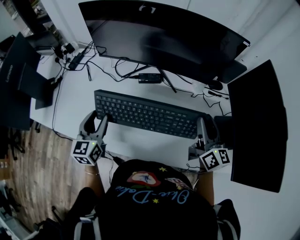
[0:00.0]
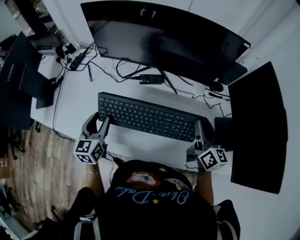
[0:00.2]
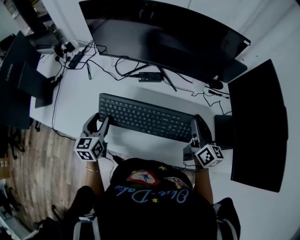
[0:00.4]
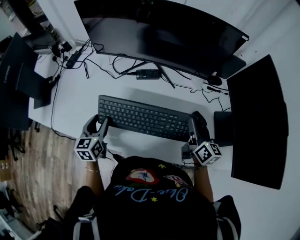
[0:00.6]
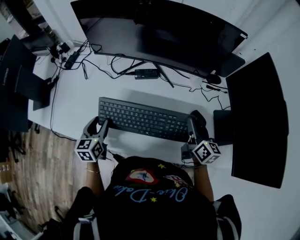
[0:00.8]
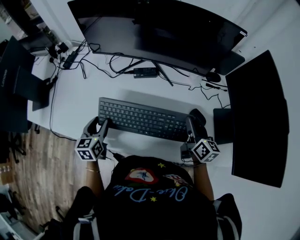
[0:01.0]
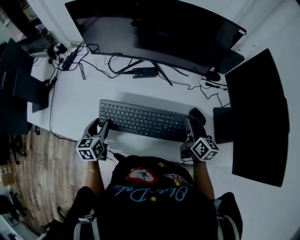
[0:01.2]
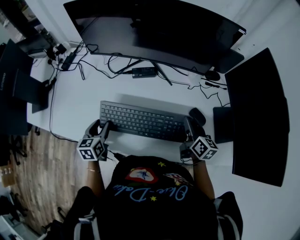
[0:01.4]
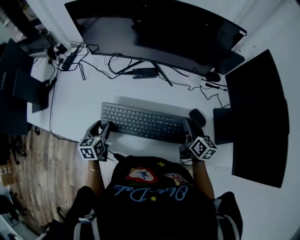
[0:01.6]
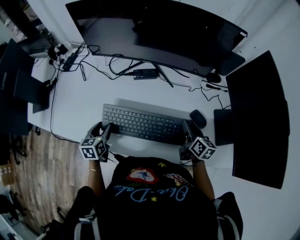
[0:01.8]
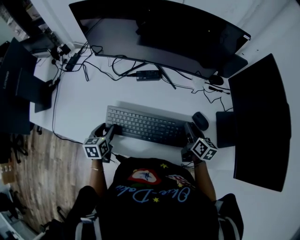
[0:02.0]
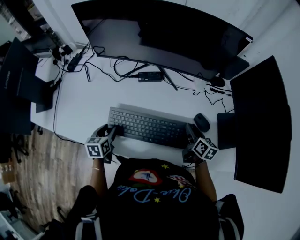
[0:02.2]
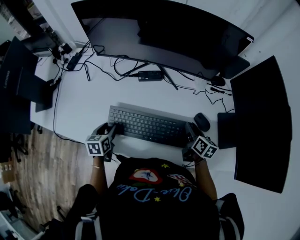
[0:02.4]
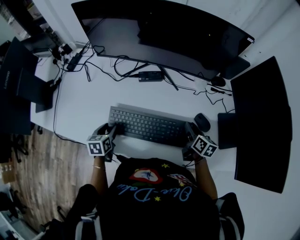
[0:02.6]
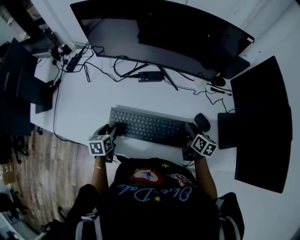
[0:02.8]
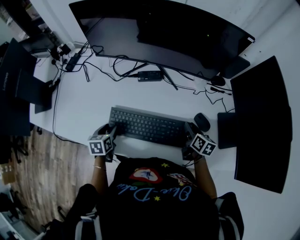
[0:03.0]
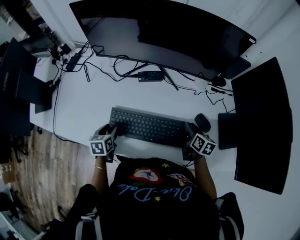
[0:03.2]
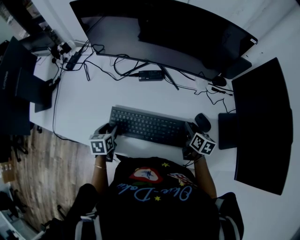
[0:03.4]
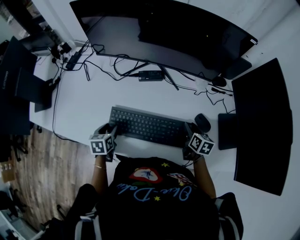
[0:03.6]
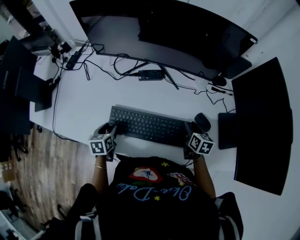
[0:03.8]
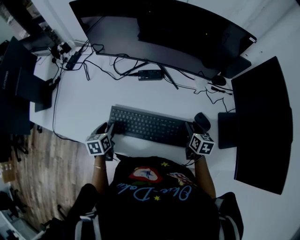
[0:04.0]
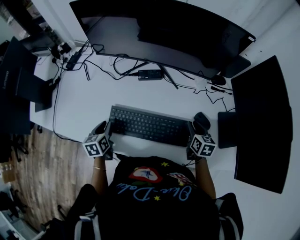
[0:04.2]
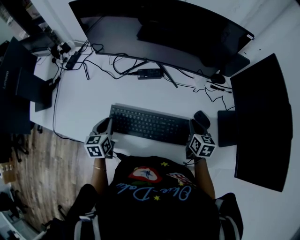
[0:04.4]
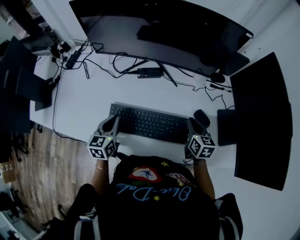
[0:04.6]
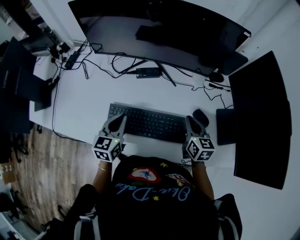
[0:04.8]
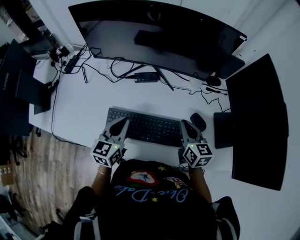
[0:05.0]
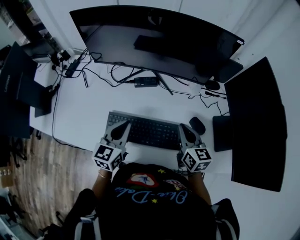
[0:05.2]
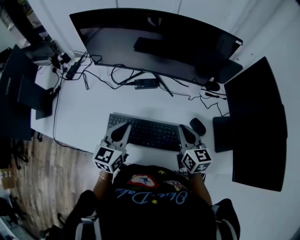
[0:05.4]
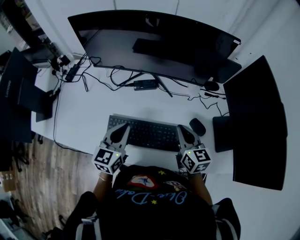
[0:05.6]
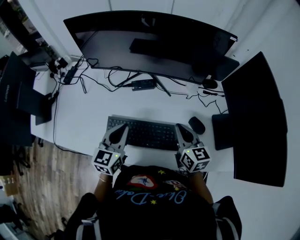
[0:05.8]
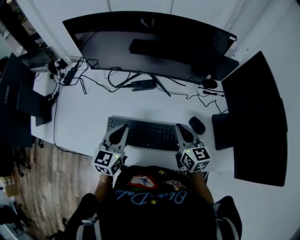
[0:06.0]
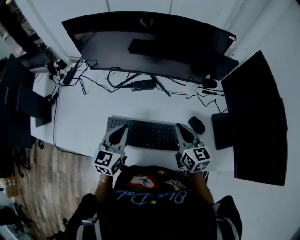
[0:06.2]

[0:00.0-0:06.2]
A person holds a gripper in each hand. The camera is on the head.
0:00.0 to 0:01.6: The two grippers go some 15 cm downward. The right gripper turns by about 20 degrees; the left gripper turns by about 20 degrees.
0:01.6 to 0:03.2: The right gripper moves downward, some 5 cm.
0:03.2 to 0:04.6: Both grippers move upward, roughly 5 cm. The left gripper turns by some 20 degrees, and closes up. The right gripper closes.
0:04.6 to 0:06.2: The left gripper is displaced upward and to the right by approximately 10 cm, while the right gripper goes approximately 10 cm upward and to the left.

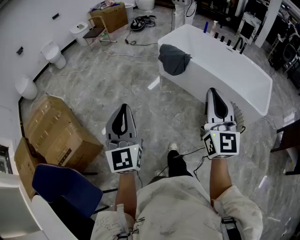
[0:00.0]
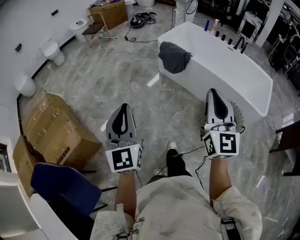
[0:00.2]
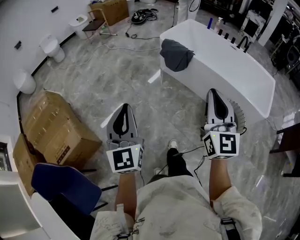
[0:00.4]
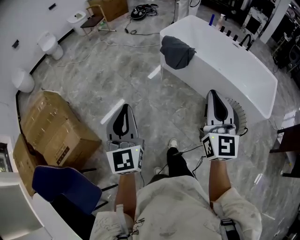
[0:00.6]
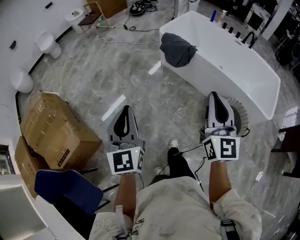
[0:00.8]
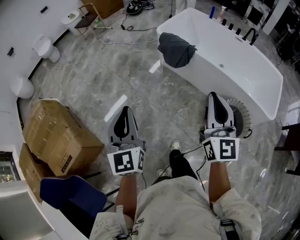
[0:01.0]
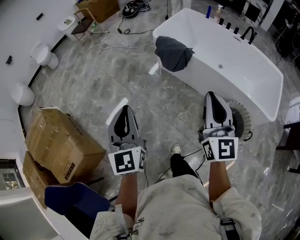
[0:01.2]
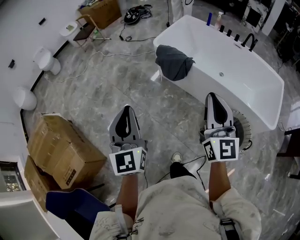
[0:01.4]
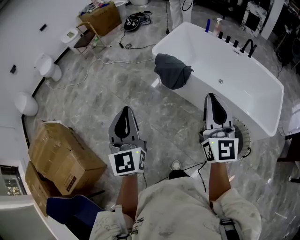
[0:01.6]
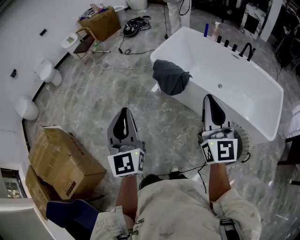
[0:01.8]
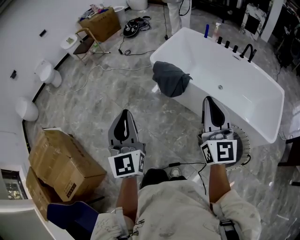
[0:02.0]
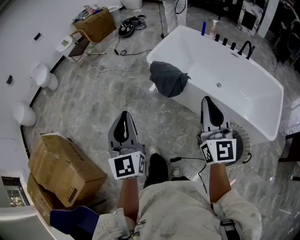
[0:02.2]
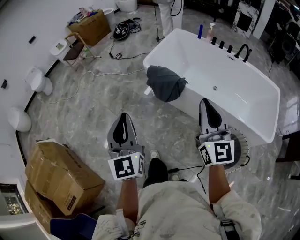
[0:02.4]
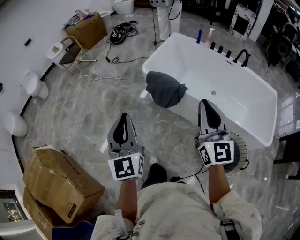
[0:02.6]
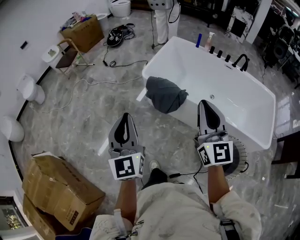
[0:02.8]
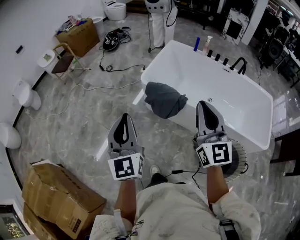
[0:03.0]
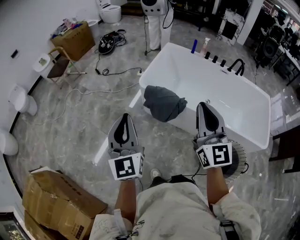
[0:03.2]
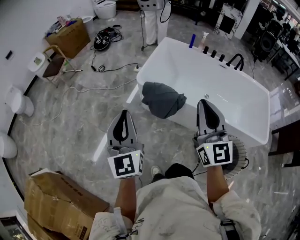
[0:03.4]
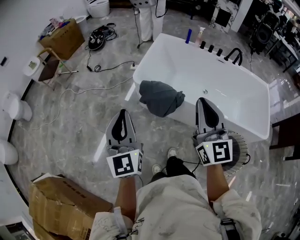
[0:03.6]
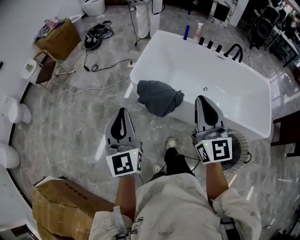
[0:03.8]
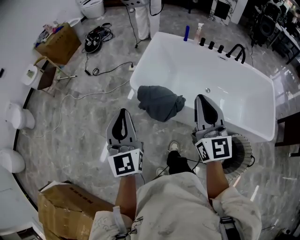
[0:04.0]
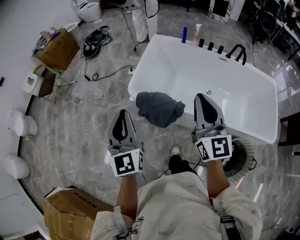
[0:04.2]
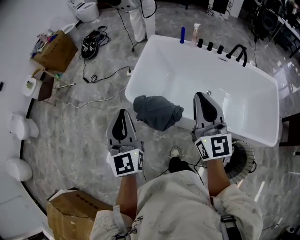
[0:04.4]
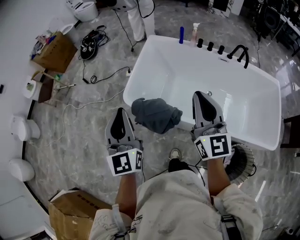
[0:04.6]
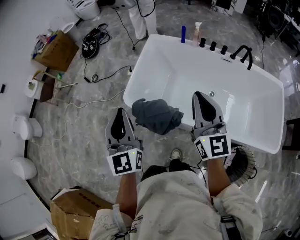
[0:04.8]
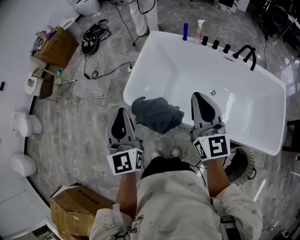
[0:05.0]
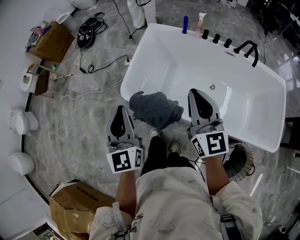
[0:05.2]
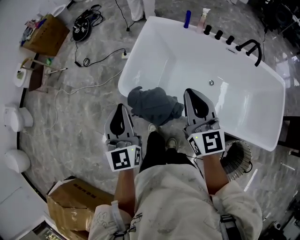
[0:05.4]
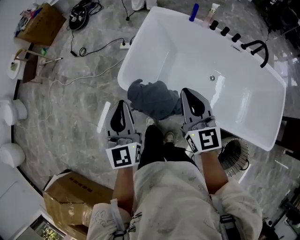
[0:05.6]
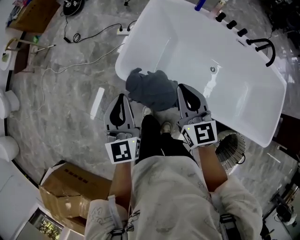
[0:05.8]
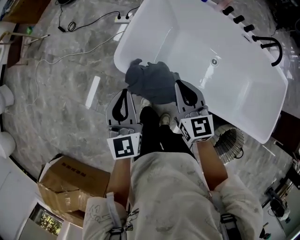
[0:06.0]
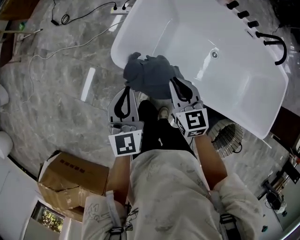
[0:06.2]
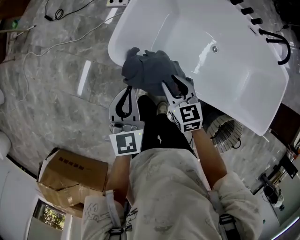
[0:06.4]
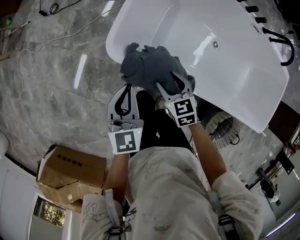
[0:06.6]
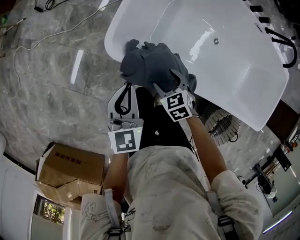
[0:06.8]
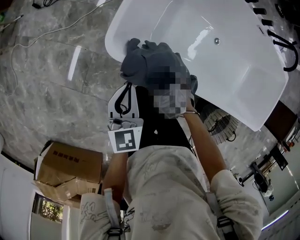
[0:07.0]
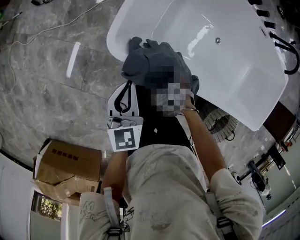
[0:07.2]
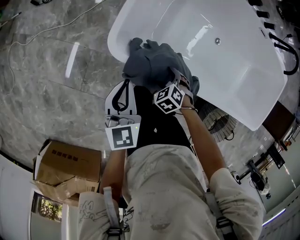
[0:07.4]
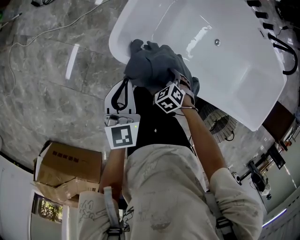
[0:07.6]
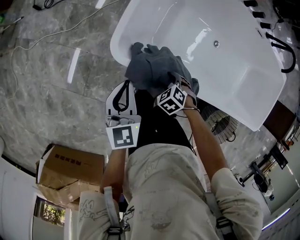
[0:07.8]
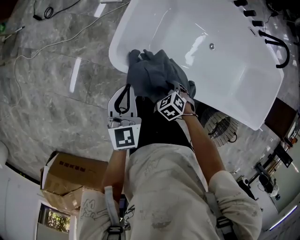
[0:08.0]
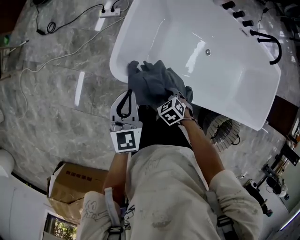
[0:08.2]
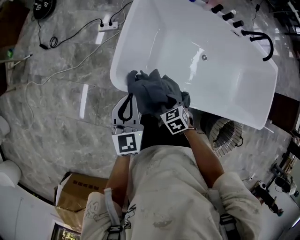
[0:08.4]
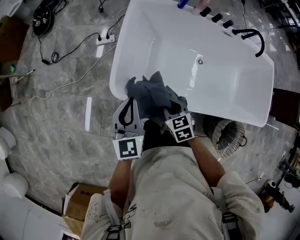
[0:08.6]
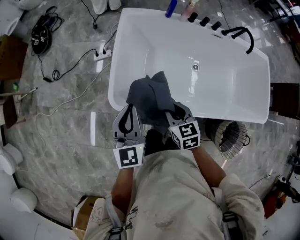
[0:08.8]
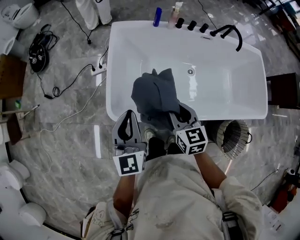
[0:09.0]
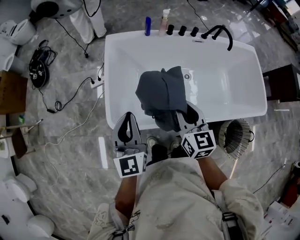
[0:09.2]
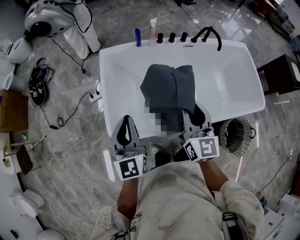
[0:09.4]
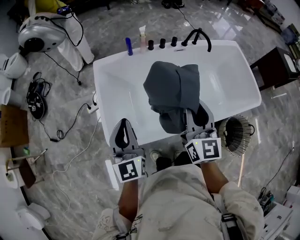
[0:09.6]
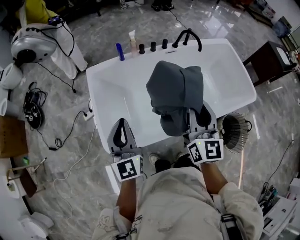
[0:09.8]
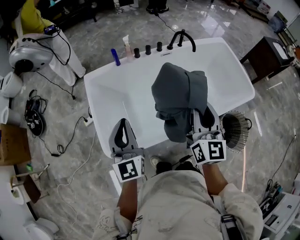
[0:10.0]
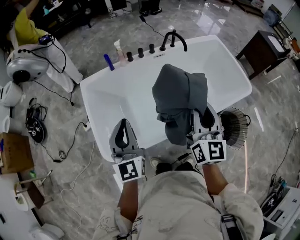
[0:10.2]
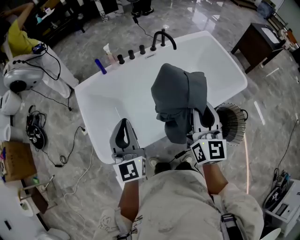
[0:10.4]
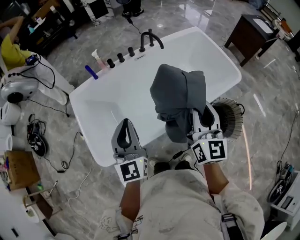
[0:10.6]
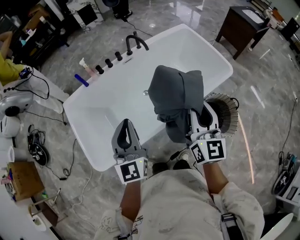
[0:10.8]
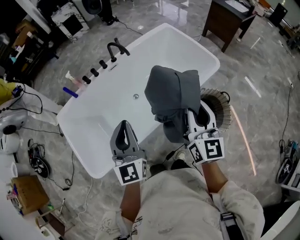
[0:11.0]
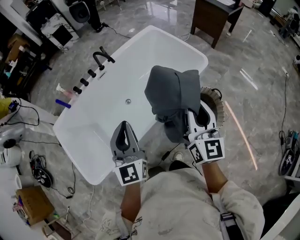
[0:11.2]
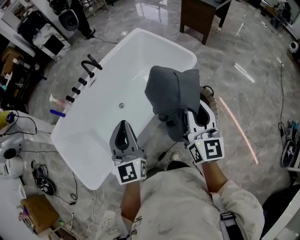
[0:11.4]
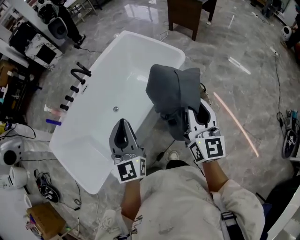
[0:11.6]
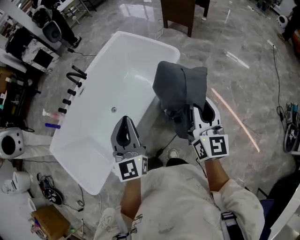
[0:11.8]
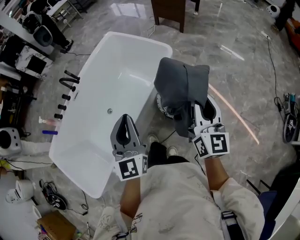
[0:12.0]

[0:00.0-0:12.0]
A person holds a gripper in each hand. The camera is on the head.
0:00.0 to 0:01.6: The grippers both shift forward by about 30 cm.
0:01.6 to 0:03.0: Both grippers travel together forward, approximately 25 cm.
0:03.0 to 0:04.4: The right gripper shifts about 30 cm forward and to the right. The left gripper goes approximately 30 cm forward.
0:04.4 to 0:06.0: The left gripper moves downward and forward, some 30 cm. The right gripper is displaced downward, forward and to the left by roughly 35 cm, and changes its angle by some 30 degrees.
0:06.0 to 0:07.6: The right gripper moves downward, some 35 cm, tips its fingers downward by some 60 degrees, and opens. The left gripper heads downward, covering roughly 15 cm.
0:07.6 to 0:09.0: The two grippers go roughly 30 cm upward. The left gripper swivels some 30 degrees; the right gripper tilts its fingers some 50 degrees upward, and closes up.
0:09.0 to 0:10.4: The left gripper moves some 25 cm, and rotates some 20 degrees, while the right gripper moves some 35 cm, and tilts its fingers roughly 30 degrees upward.
0:10.4 to 0:12.0: Both grippers are carried about 50 cm. The left gripper swivels roughly 30 degrees. Meanwhile the right gripper rotates approximately 30 degrees.

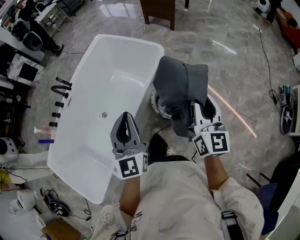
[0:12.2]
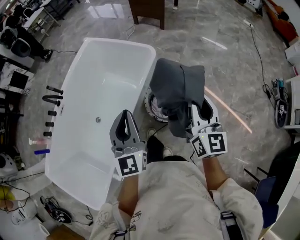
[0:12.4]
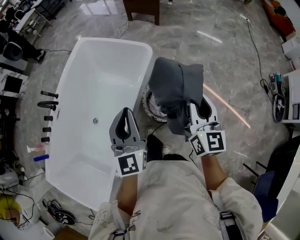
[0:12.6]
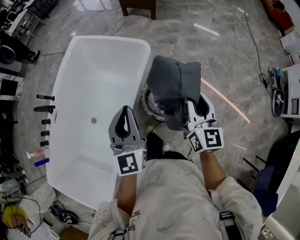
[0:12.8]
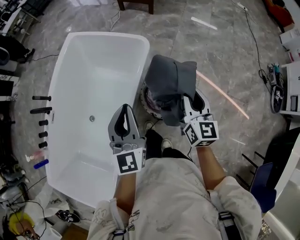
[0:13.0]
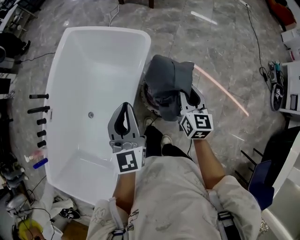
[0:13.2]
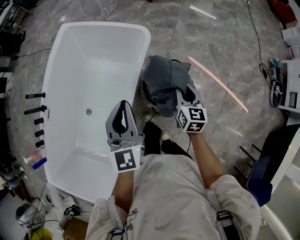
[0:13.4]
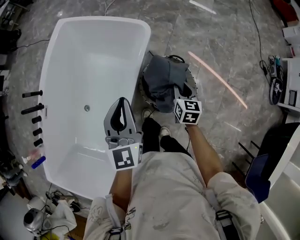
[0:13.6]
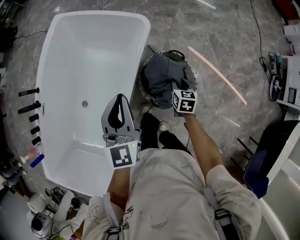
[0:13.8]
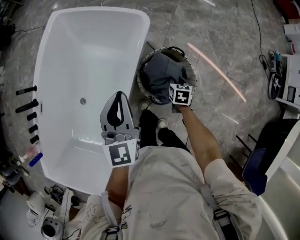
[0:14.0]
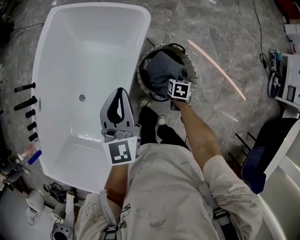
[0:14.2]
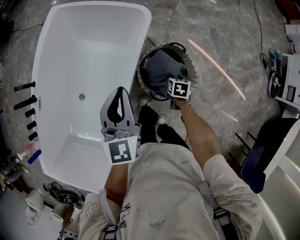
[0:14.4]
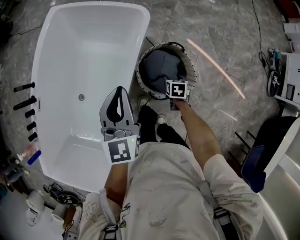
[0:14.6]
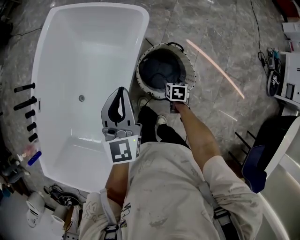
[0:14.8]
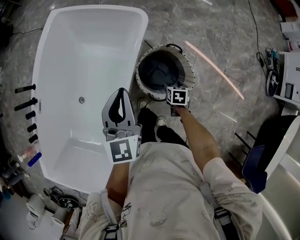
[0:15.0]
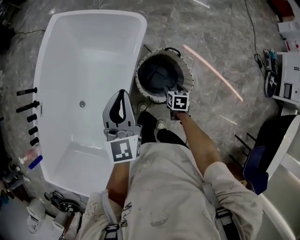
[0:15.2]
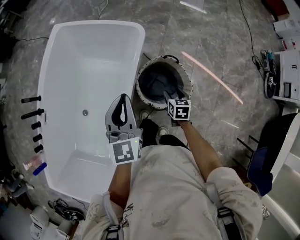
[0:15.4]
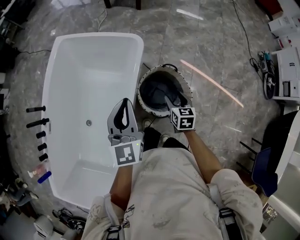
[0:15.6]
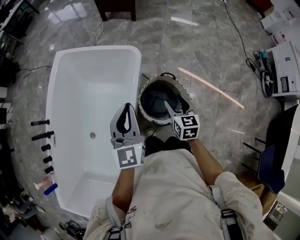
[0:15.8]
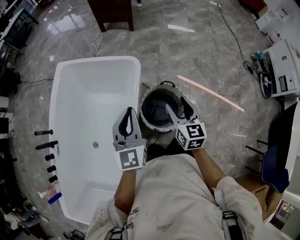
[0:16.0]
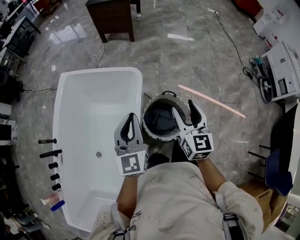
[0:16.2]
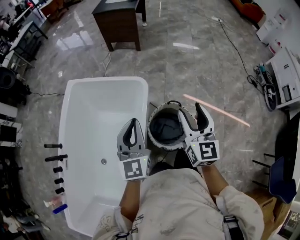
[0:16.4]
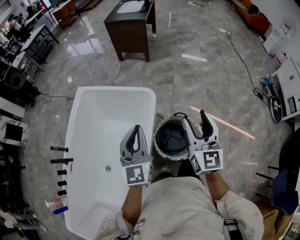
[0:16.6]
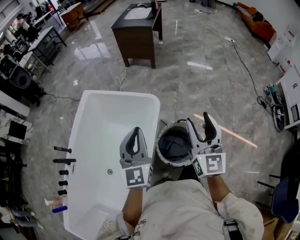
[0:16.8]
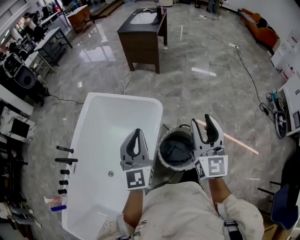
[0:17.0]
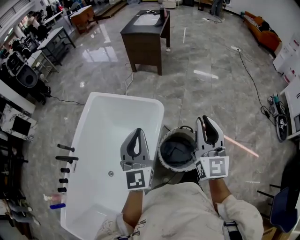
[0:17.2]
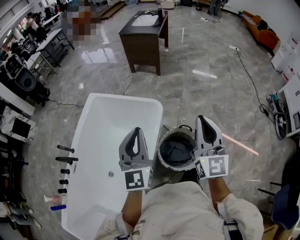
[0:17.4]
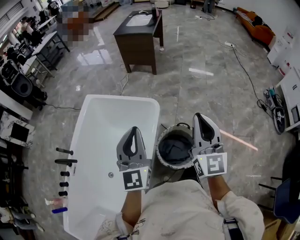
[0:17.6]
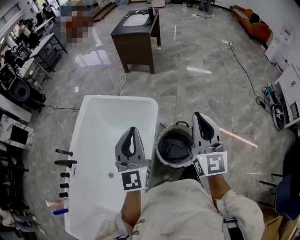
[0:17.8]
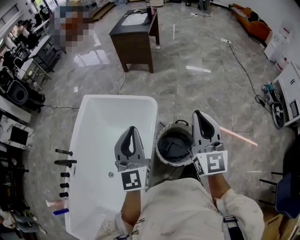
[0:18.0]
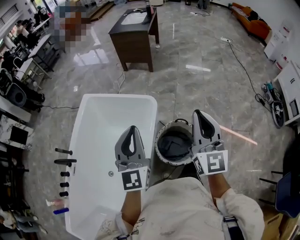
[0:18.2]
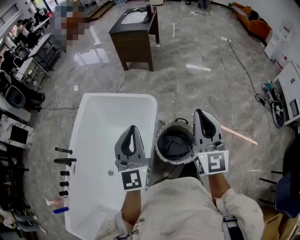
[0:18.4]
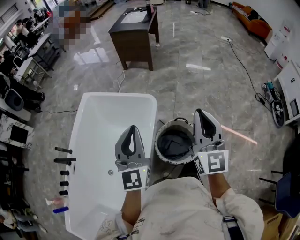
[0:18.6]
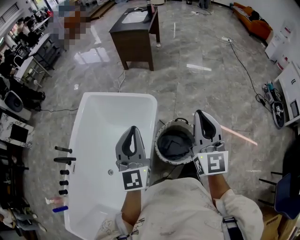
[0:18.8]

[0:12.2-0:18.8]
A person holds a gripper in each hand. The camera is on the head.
0:12.2 to 0:13.8: The right gripper shifts some 40 cm downward and forward, and points its fingers roughly 50 degrees further downward; the left gripper moves forward and downward, some 25 cm.
0:13.8 to 0:15.4: The right gripper shifts about 5 cm backward, moves some 10 cm downward and comes back, and opens up.
0:15.4 to 0:17.2: The right gripper moves upward, roughly 50 cm, tilts its fingers approximately 60 degrees upward, and closes, while the left gripper shifts some 15 cm upward.
0:17.2 to 0:18.8: There are only small adjustments of the grippers.
